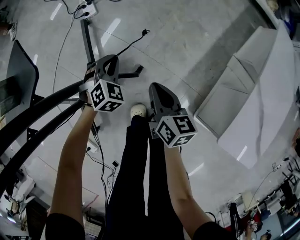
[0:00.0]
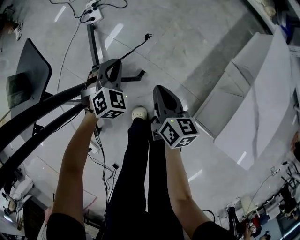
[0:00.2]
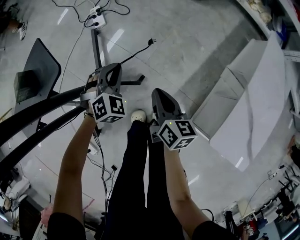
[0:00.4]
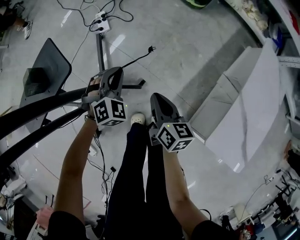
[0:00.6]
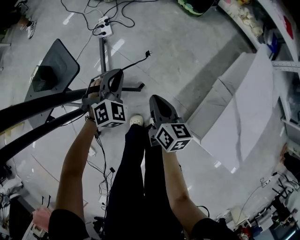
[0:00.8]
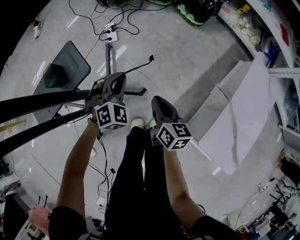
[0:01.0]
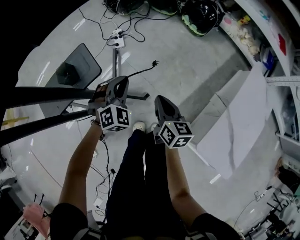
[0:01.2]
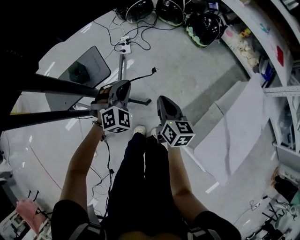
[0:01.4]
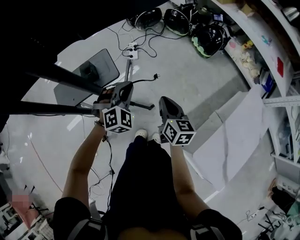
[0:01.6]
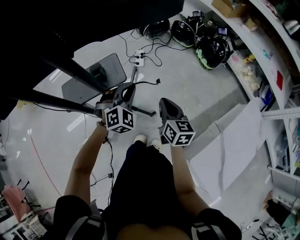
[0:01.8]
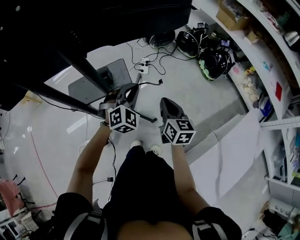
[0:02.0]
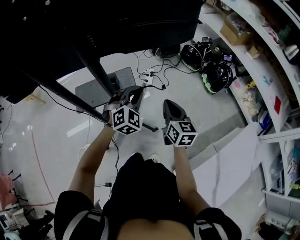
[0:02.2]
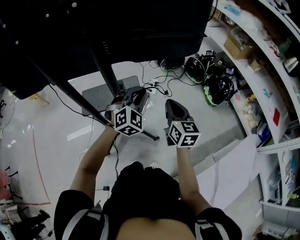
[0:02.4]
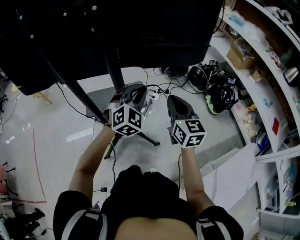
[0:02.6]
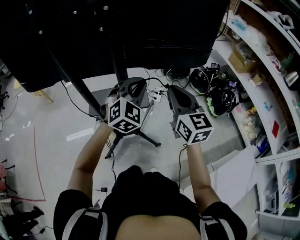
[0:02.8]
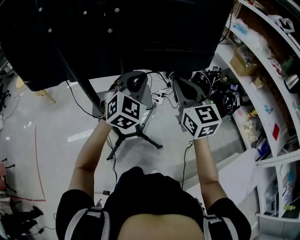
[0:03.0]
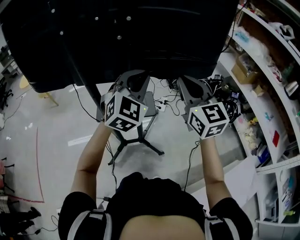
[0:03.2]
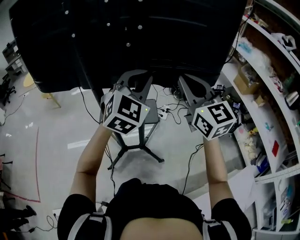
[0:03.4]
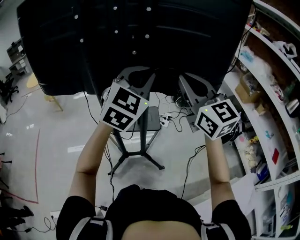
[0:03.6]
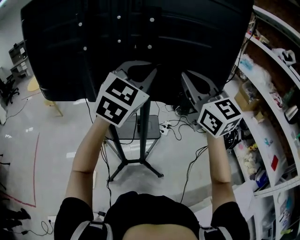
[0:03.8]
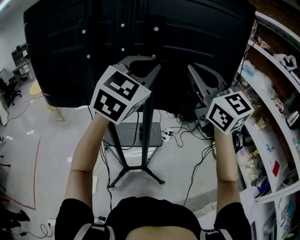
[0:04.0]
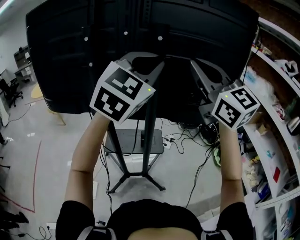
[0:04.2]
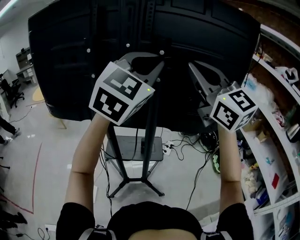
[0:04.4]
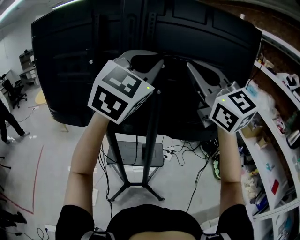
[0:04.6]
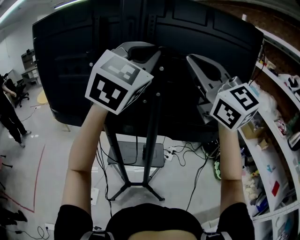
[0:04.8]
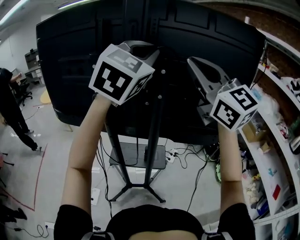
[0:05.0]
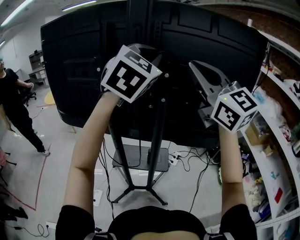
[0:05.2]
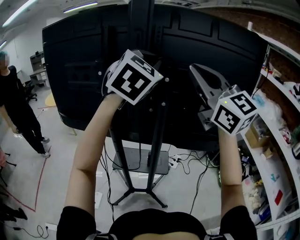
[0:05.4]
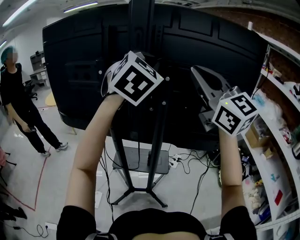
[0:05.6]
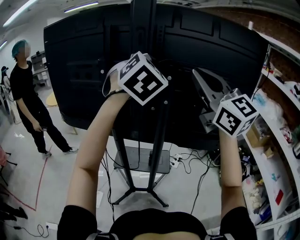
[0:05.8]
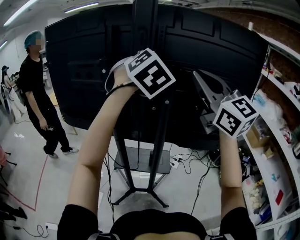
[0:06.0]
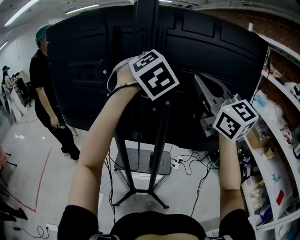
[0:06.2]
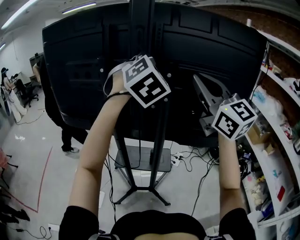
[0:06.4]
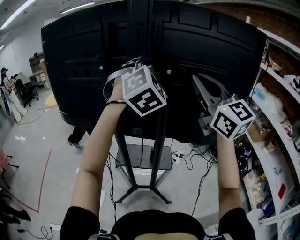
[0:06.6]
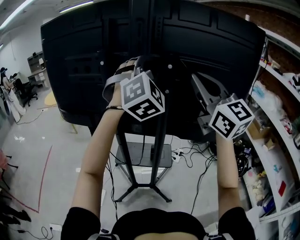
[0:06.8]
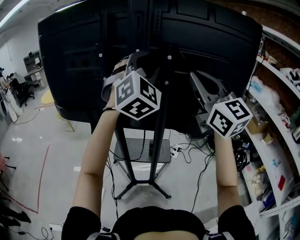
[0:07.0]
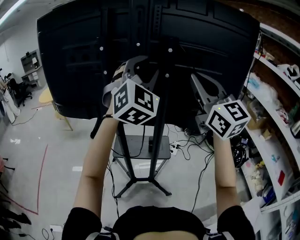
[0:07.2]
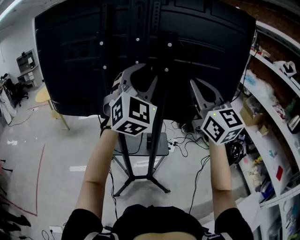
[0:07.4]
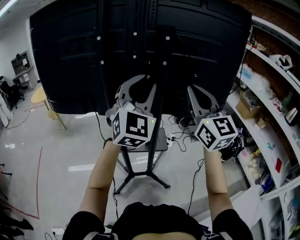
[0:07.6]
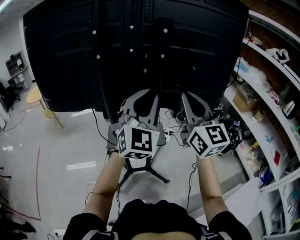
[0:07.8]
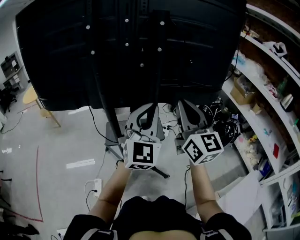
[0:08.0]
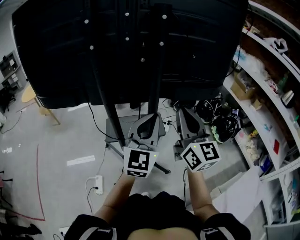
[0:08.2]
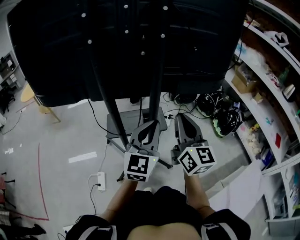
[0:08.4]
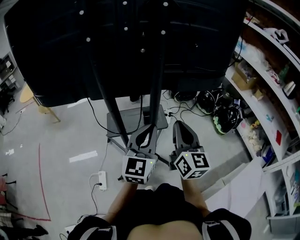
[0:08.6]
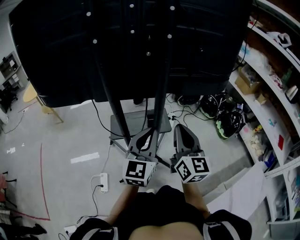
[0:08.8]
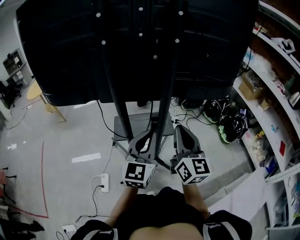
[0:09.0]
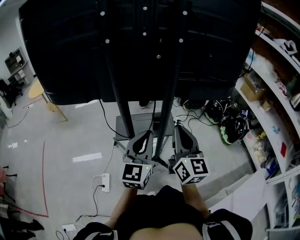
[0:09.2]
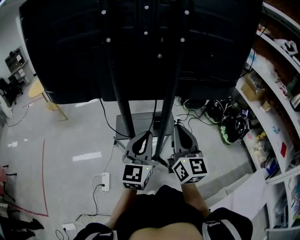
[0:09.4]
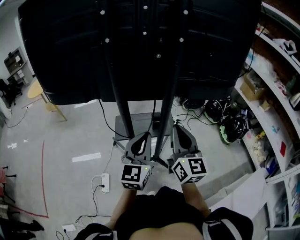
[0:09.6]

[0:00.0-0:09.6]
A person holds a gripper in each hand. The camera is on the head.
0:00.0 to 0:01.6: Both grippers move upward, about 35 cm. The right gripper turns by about 20 degrees.
0:01.6 to 0:03.2: Both grippers move upward, roughly 40 cm. The left gripper rotates about 40 degrees. Meanwhile the right gripper turns by some 50 degrees.
0:03.2 to 0:04.8: The grippers both shift upward by about 30 cm. The right gripper turns by approximately 30 degrees.
0:04.8 to 0:06.4: The left gripper is displaced forward and downward by about 10 cm, and turns by approximately 30 degrees.
0:06.4 to 0:08.0: The two grippers go some 25 cm downward and backward. The right gripper swivels approximately 30 degrees. Meanwhile the left gripper turns by about 40 degrees, and opens, then closes again.
0:08.0 to 0:09.6: Both grippers travel together downward and to the left, approximately 15 cm. The left gripper rotates roughly 30 degrees.

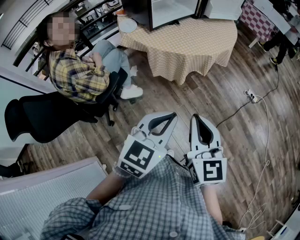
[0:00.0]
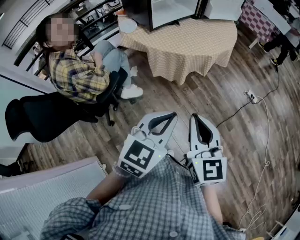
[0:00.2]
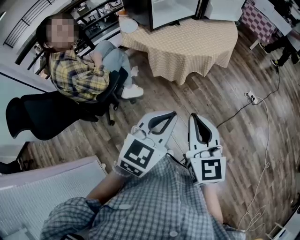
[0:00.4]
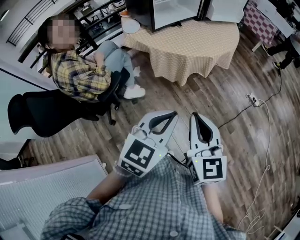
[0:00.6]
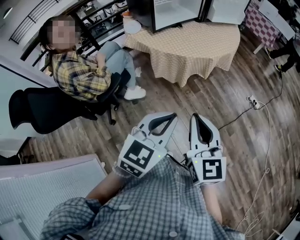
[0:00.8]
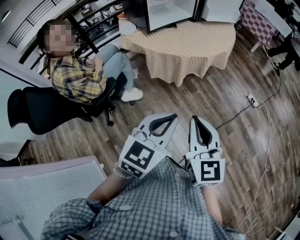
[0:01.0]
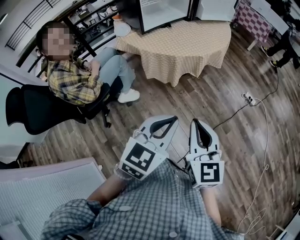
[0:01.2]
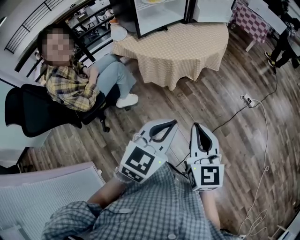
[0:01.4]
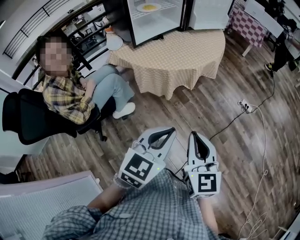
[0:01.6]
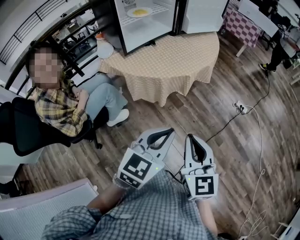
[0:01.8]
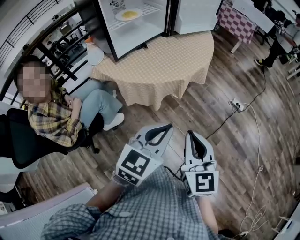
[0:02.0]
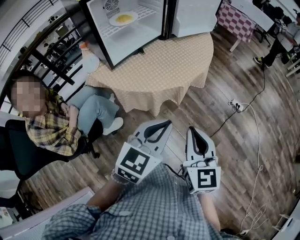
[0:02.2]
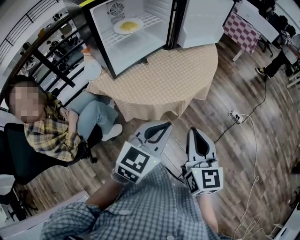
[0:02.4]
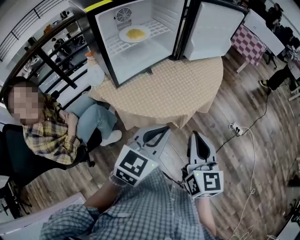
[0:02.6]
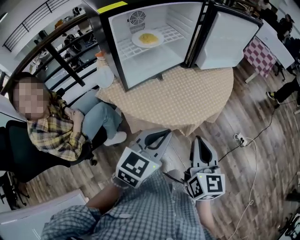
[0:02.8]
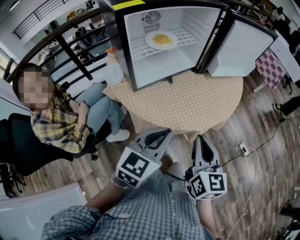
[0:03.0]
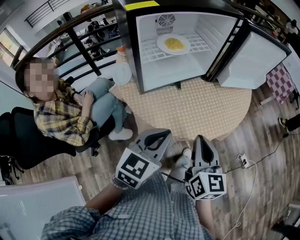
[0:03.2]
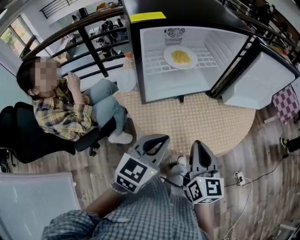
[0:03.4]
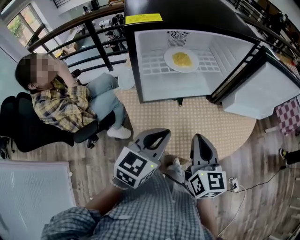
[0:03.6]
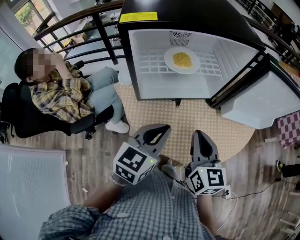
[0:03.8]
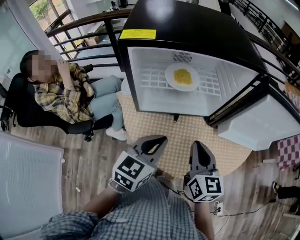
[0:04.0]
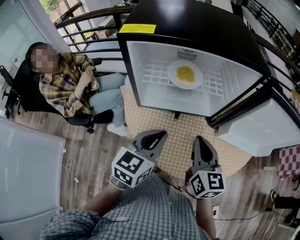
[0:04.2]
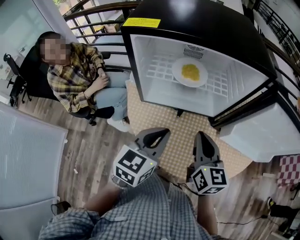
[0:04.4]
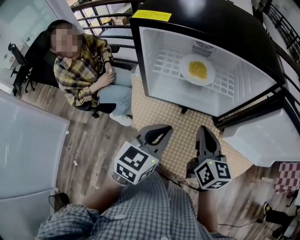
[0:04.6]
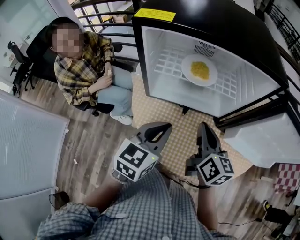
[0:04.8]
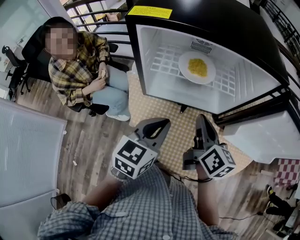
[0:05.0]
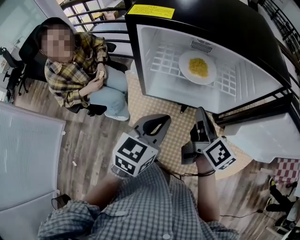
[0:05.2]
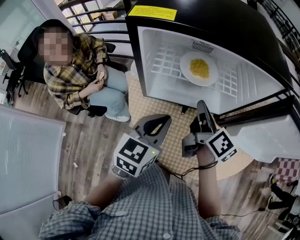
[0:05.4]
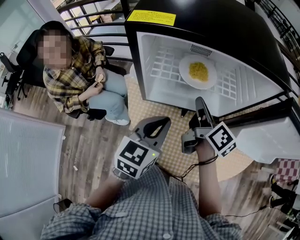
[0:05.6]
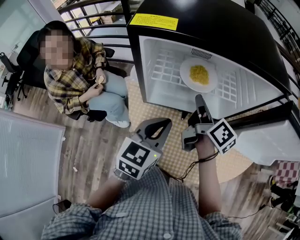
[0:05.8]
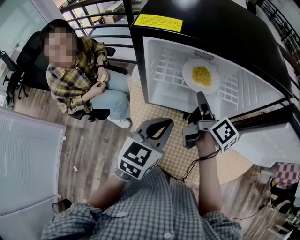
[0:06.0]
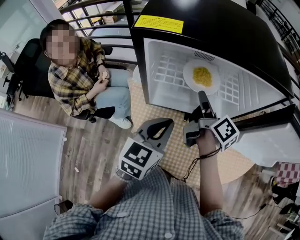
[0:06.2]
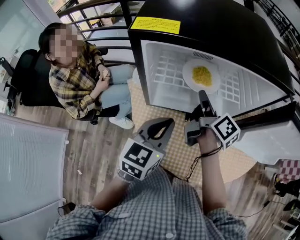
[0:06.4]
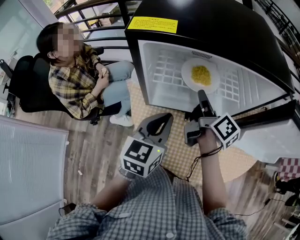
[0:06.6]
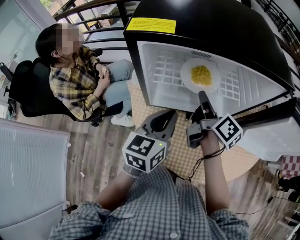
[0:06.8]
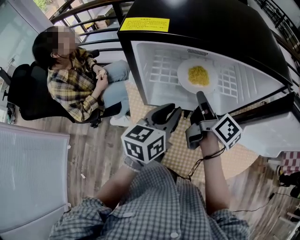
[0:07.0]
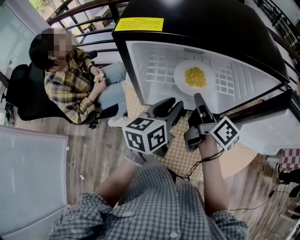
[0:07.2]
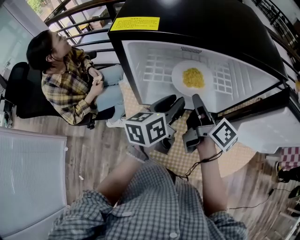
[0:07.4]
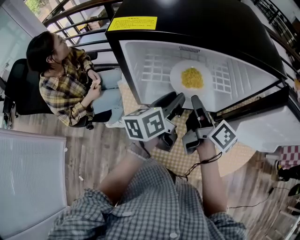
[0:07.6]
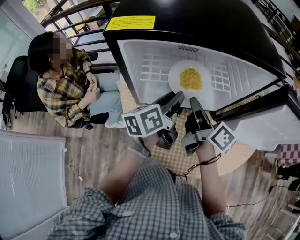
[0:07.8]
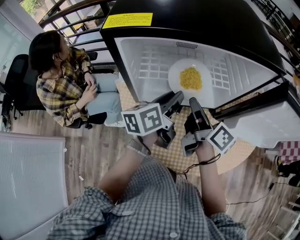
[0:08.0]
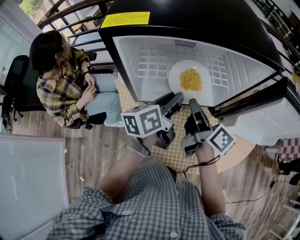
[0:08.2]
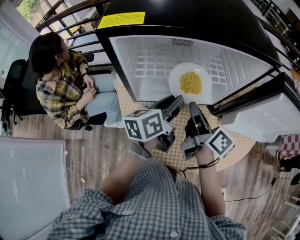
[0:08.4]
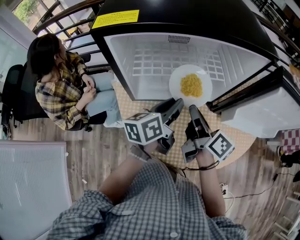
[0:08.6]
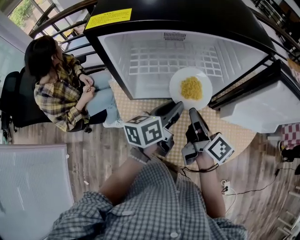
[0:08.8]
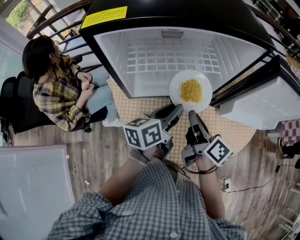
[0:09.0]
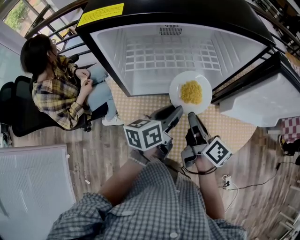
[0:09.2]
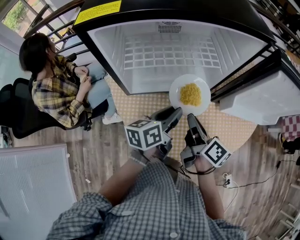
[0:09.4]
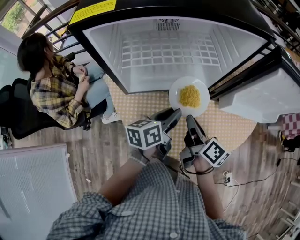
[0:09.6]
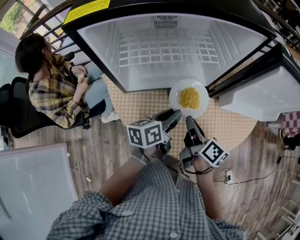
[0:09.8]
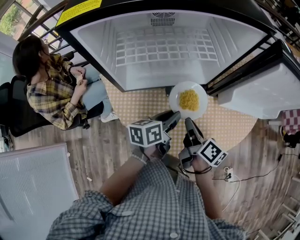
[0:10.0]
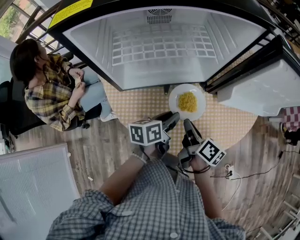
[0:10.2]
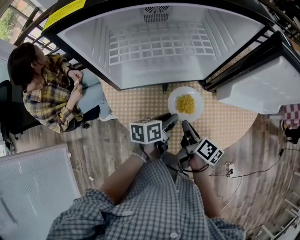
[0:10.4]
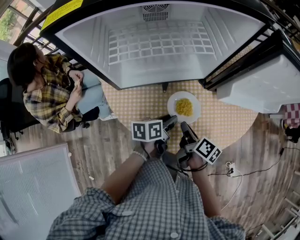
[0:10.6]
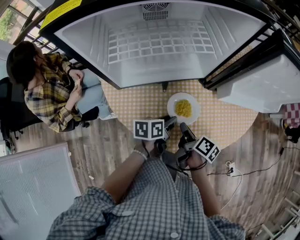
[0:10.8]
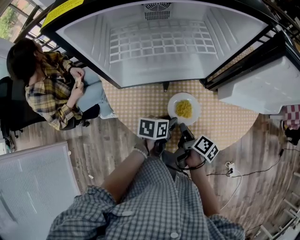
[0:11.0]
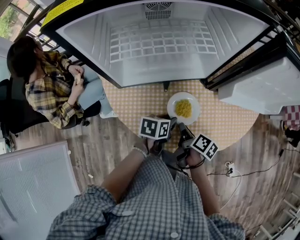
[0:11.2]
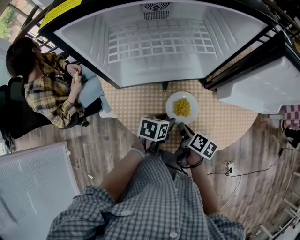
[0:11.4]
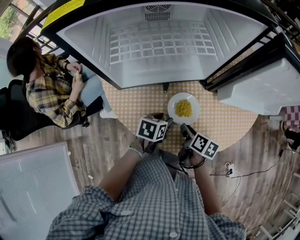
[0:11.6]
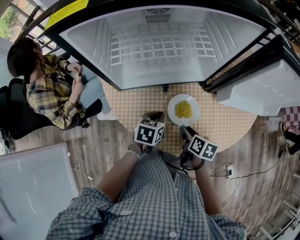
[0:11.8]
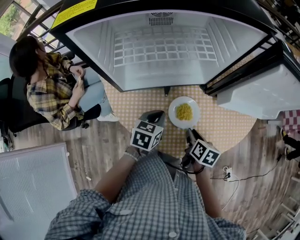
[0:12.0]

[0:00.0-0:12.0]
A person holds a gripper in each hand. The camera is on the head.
0:00.0 to 0:01.6: The grippers both shift to the right by some 10 cm.
0:01.6 to 0:03.0: The left gripper travels downward, to the left and forward by roughly 30 cm, while the right gripper shifts roughly 30 cm downward, forward and to the left.
0:03.0 to 0:04.4: The right gripper shifts by some 25 cm, and rotates some 40 degrees. The left gripper changes place by roughly 20 cm, and changes its angle by roughly 40 degrees.
0:04.4 to 0:06.0: The left gripper goes about 5 cm forward, while the right gripper shifts roughly 15 cm forward and to the left, and twists roughly 50 degrees clockwise, seen from behind.
0:06.0 to 0:07.6: The left gripper is displaced forward by approximately 10 cm, rotates some 40 degrees, and opens.
0:07.6 to 0:09.0: The right gripper goes about 10 cm backward, downward and to the right. The left gripper shifts some 10 cm backward and to the right.
0:09.0 to 0:10.4: The left gripper heads downward, covering about 15 cm, and swivels roughly 20 degrees. Meanwhile the right gripper shifts roughly 15 cm downward and backward.
0:10.4 to 0:12.0: The right gripper changes place by some 5 cm, and swivels roughly 30 degrees. The left gripper swivels some 40 degrees, and opens and closes again.

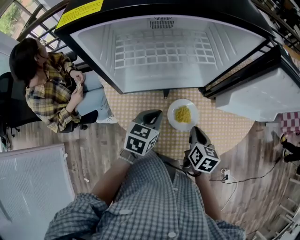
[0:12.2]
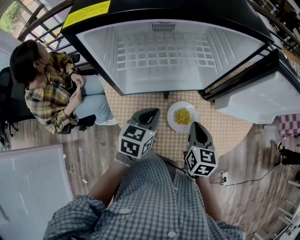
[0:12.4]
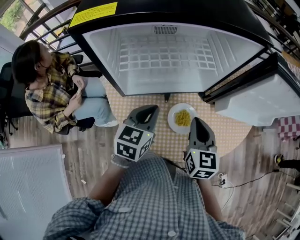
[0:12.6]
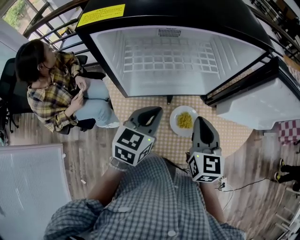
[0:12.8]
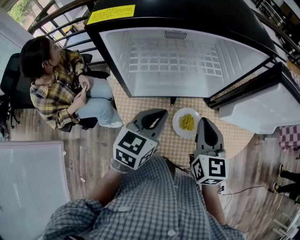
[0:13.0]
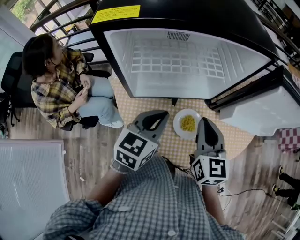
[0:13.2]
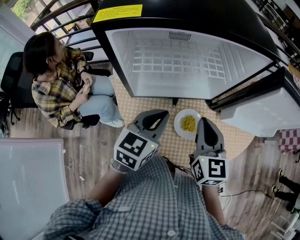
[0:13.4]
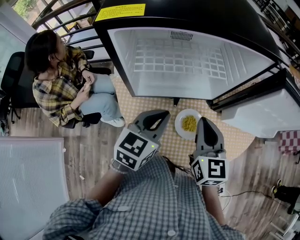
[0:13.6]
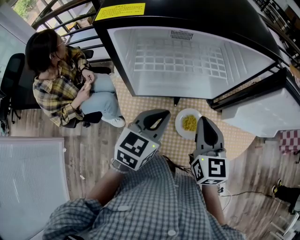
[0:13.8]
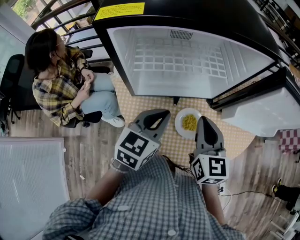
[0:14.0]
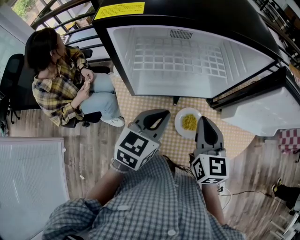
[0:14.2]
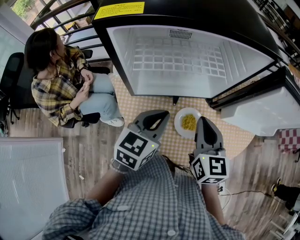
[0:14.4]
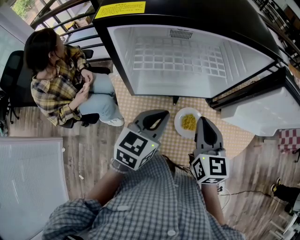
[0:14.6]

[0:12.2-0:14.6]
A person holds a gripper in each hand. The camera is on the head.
0:12.2 to 0:13.4: Both grippers travel together upward, some 15 cm. The right gripper changes its angle by roughly 30 degrees.
0:13.4 to 0:14.6: Both grippers stay about where they are.
